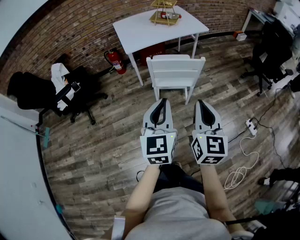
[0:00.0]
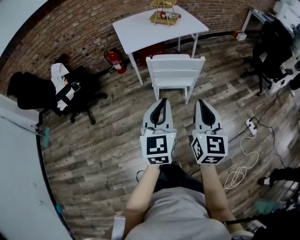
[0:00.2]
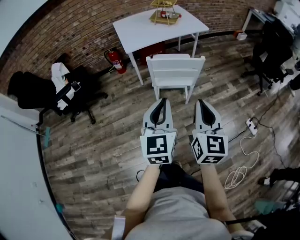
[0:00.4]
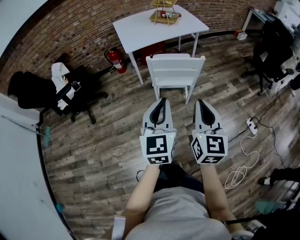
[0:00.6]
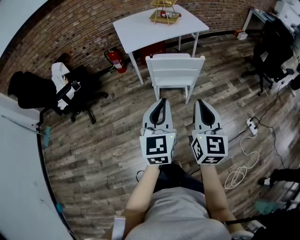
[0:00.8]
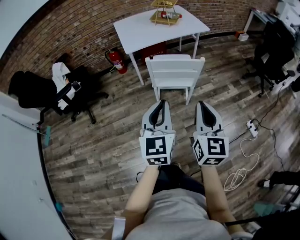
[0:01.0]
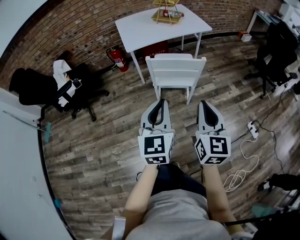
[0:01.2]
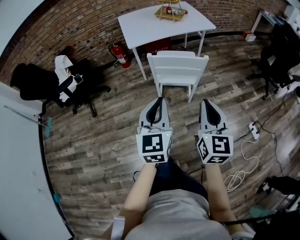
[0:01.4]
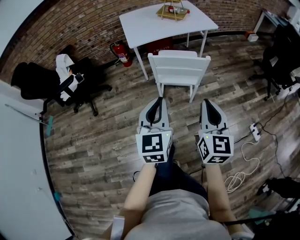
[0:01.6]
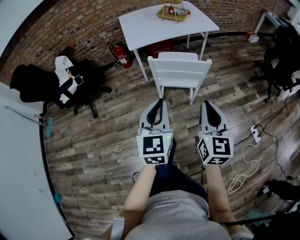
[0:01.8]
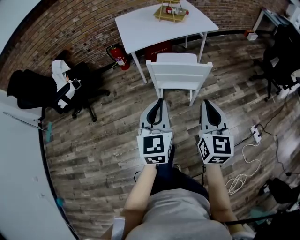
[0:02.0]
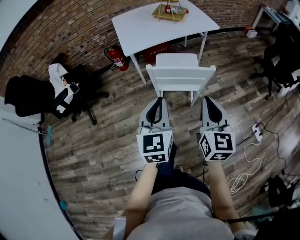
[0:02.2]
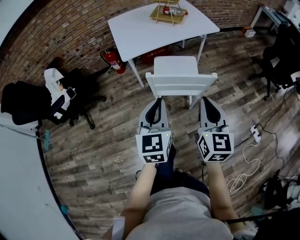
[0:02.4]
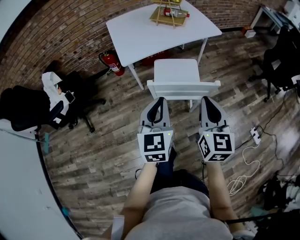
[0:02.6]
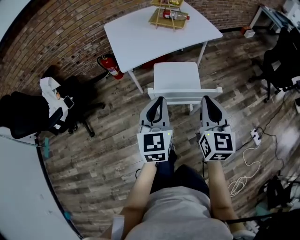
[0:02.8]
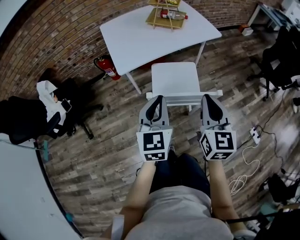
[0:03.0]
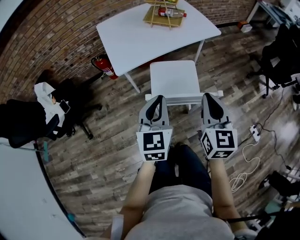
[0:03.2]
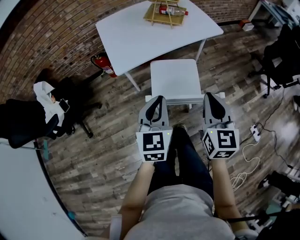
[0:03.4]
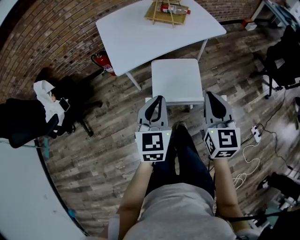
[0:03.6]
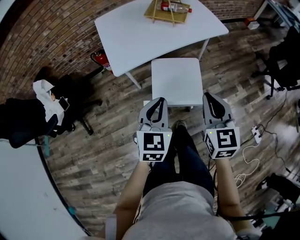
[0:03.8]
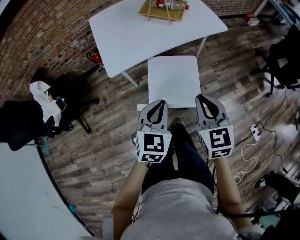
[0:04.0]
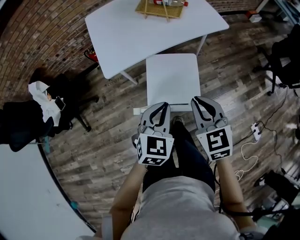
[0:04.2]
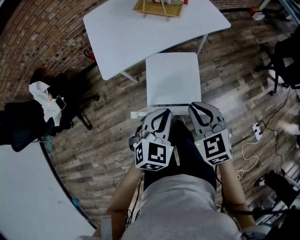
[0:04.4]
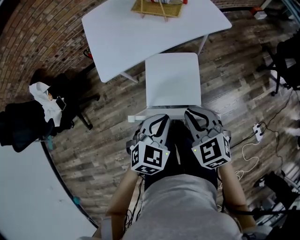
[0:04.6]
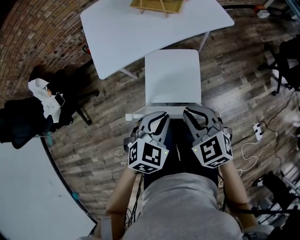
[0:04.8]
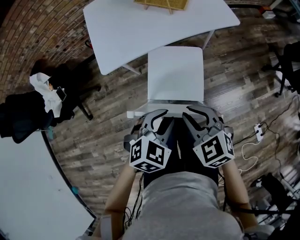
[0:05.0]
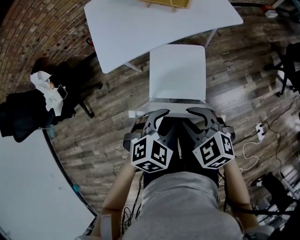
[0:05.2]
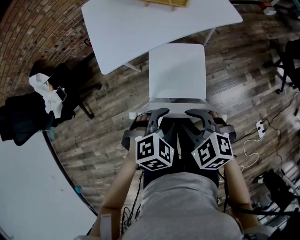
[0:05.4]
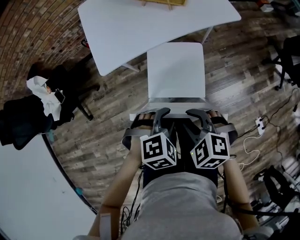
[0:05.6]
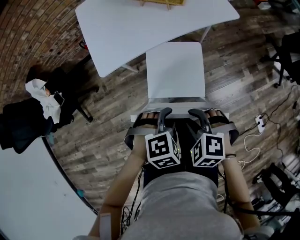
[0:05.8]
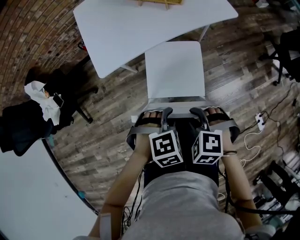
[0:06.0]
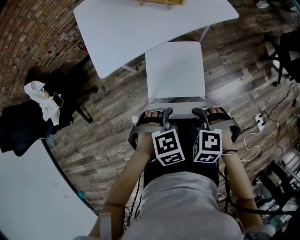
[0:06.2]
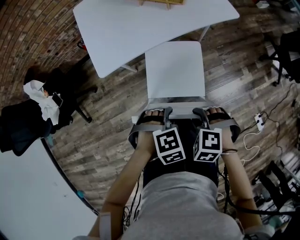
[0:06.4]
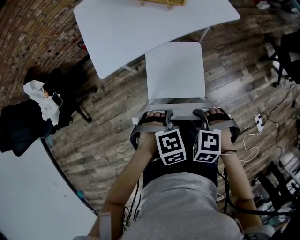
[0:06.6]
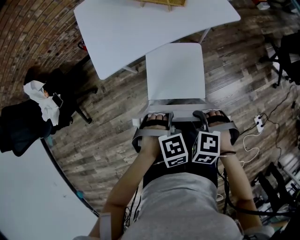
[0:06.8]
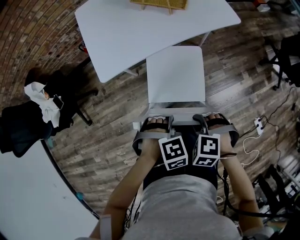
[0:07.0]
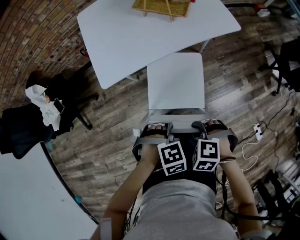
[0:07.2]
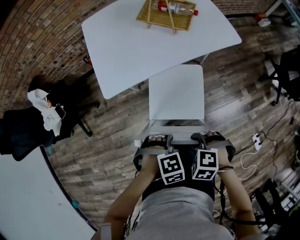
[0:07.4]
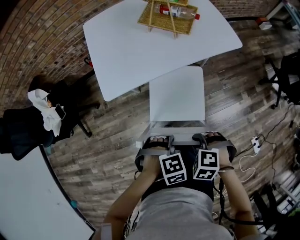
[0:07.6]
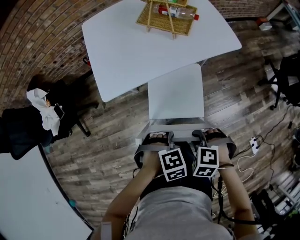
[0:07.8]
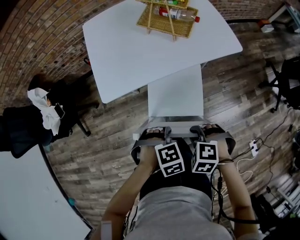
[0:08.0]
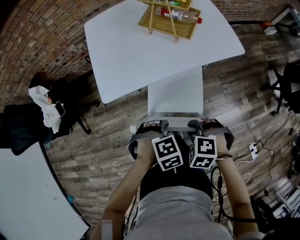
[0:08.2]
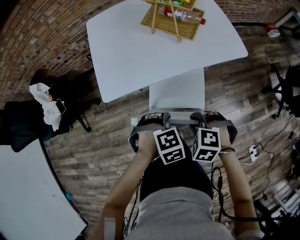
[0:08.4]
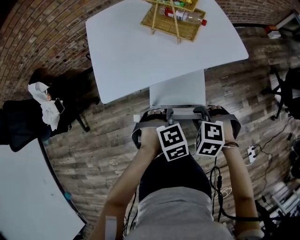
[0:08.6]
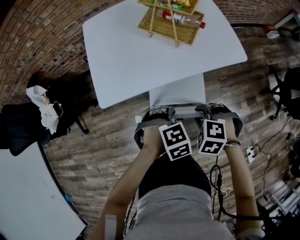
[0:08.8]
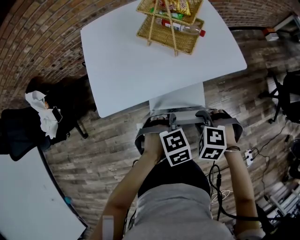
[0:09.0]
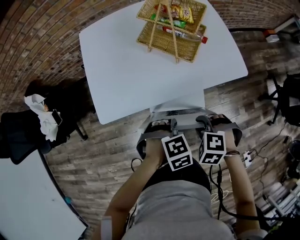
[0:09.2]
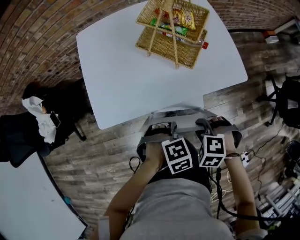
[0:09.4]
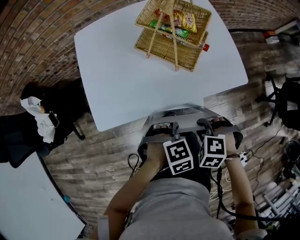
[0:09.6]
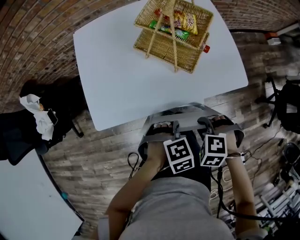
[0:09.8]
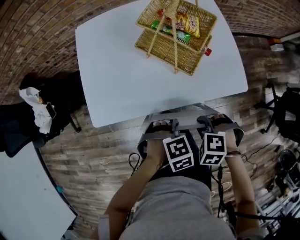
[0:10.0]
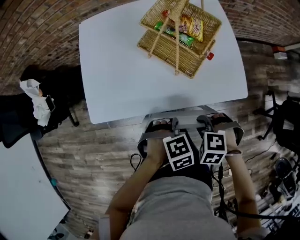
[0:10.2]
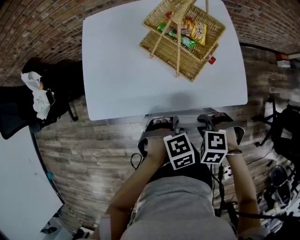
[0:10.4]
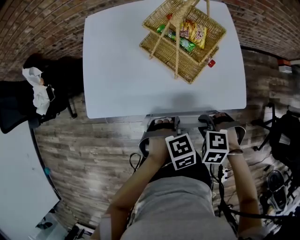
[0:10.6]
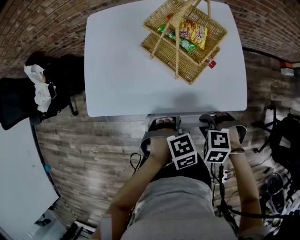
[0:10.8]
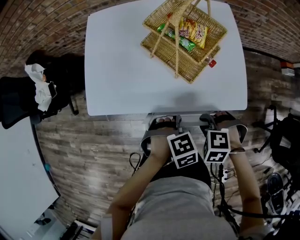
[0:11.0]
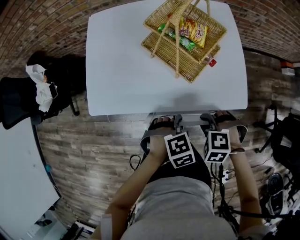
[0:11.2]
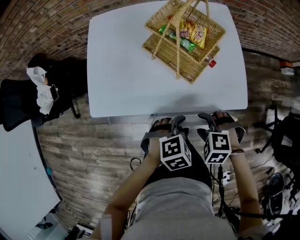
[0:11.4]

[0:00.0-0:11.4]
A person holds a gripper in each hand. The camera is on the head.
0:00.0 to 0:01.4: The right gripper ends up about 5 cm from where it was.
0:01.4 to 0:02.8: The grippers both shift forward by some 25 cm.
0:02.8 to 0:04.2: The left gripper is displaced forward, downward and to the right by about 15 cm, and turns by roughly 30 degrees; the right gripper moves forward and downward, some 15 cm, and changes its angle by some 30 degrees.
0:04.2 to 0:05.6: The grippers both shift downward by approximately 10 cm. The right gripper swivels some 50 degrees, and opens up; the left gripper points its fingers about 30 degrees further downward, and opens.
0:05.6 to 0:07.2: The right gripper shifts about 5 cm downward, and turns by about 20 degrees.
0:07.2 to 0:08.6: The left gripper moves approximately 15 cm; the right gripper shifts by roughly 15 cm.
0:08.6 to 0:10.0: The left gripper changes place by roughly 15 cm; the right gripper shifts by approximately 15 cm.
0:10.0 to 0:11.4: The right gripper opens. Meanwhile the left gripper moves roughly 5 cm, rotates some 20 degrees, and opens up.

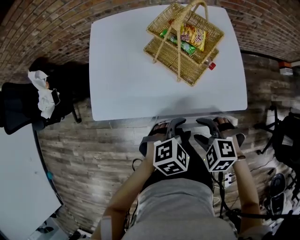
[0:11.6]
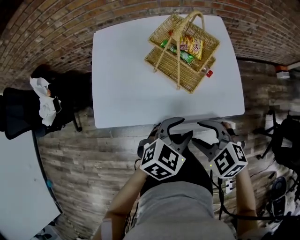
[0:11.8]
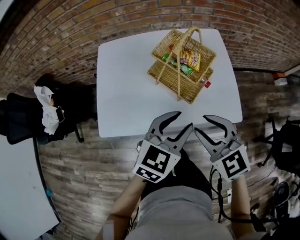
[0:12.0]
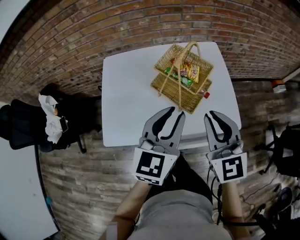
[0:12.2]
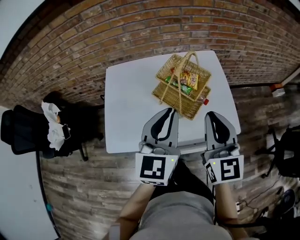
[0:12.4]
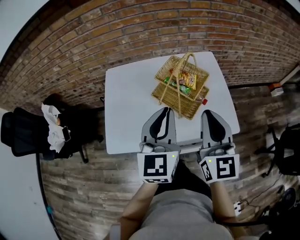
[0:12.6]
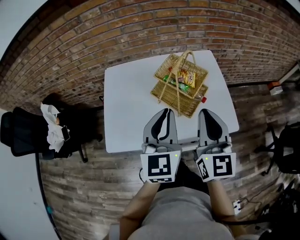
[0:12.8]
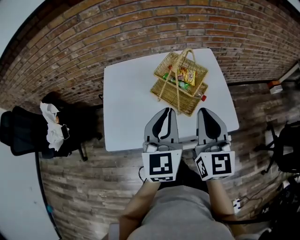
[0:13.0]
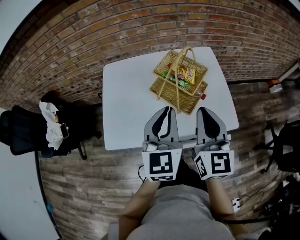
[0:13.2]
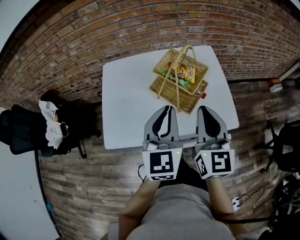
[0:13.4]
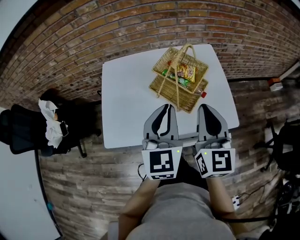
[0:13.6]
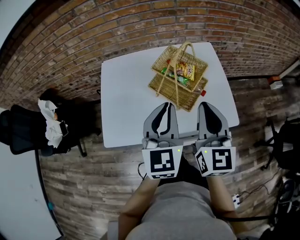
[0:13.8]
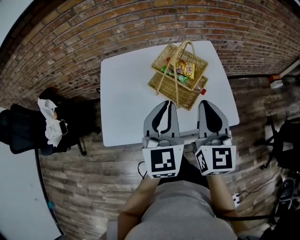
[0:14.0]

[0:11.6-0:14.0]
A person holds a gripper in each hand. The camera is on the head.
0:11.6 to 0:12.8: The left gripper moves upward, forward and to the left, about 30 cm, tilts its fingers roughly 50 degrees upward, and closes up. Meanwhile the right gripper heads upward and forward, covering about 25 cm, points its fingers roughly 60 degrees further upward, and closes up.
0:12.8 to 0:14.0: The grippers stay close to where they were, moving slightly.

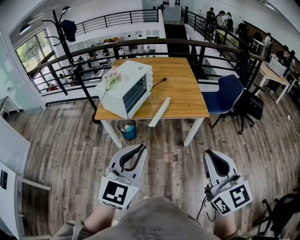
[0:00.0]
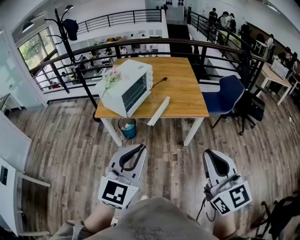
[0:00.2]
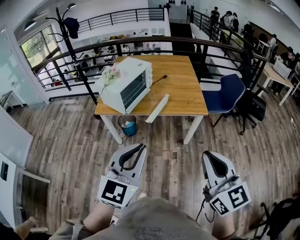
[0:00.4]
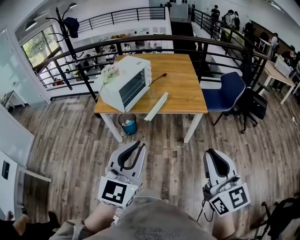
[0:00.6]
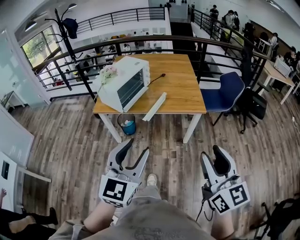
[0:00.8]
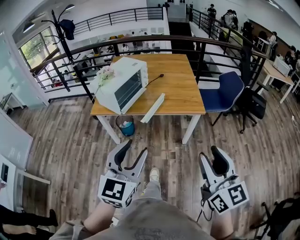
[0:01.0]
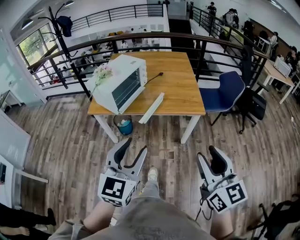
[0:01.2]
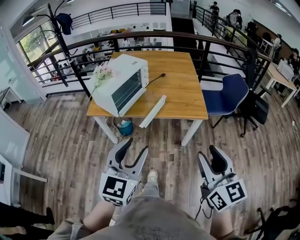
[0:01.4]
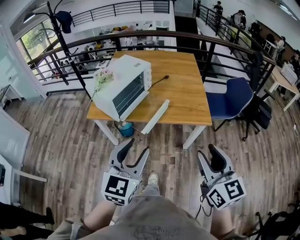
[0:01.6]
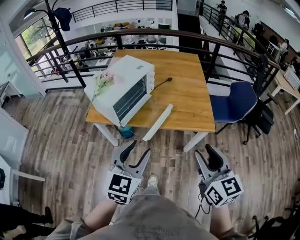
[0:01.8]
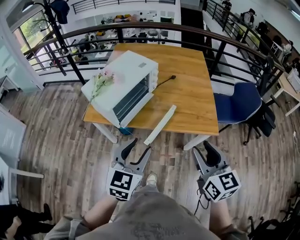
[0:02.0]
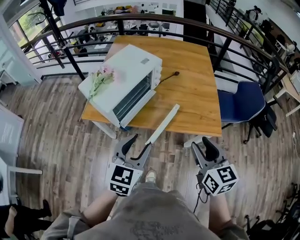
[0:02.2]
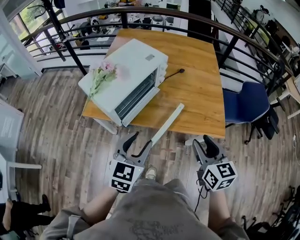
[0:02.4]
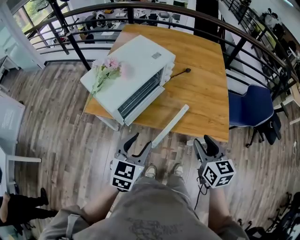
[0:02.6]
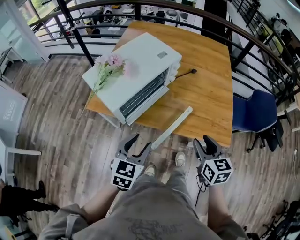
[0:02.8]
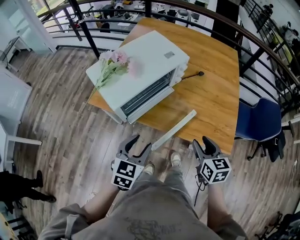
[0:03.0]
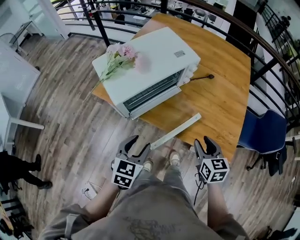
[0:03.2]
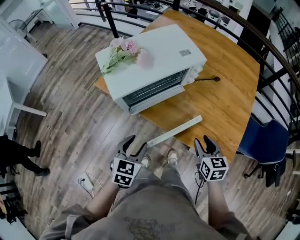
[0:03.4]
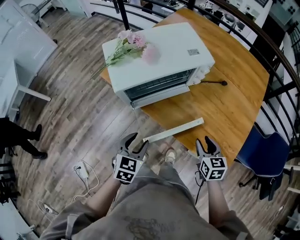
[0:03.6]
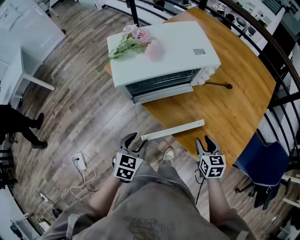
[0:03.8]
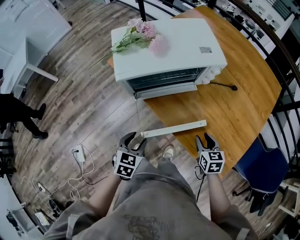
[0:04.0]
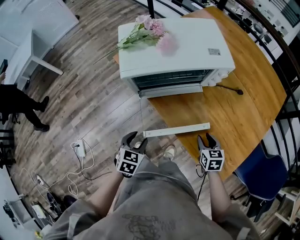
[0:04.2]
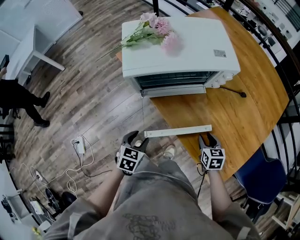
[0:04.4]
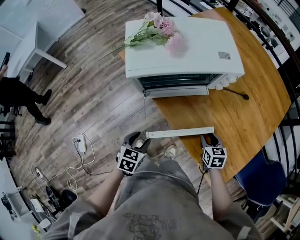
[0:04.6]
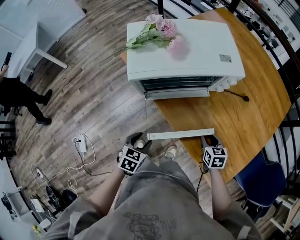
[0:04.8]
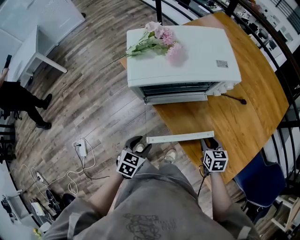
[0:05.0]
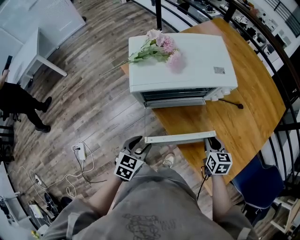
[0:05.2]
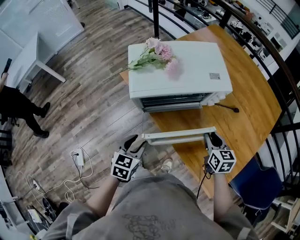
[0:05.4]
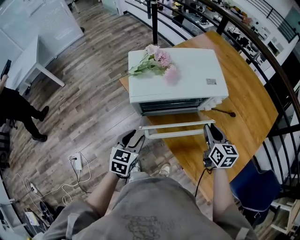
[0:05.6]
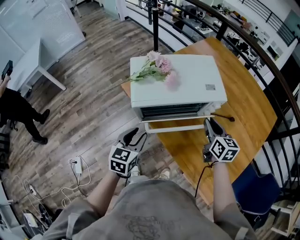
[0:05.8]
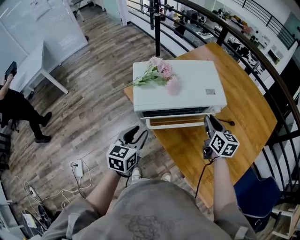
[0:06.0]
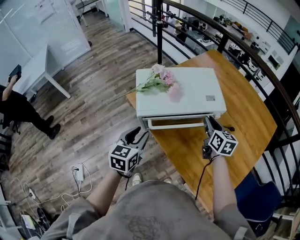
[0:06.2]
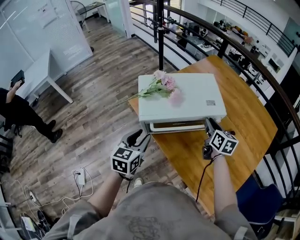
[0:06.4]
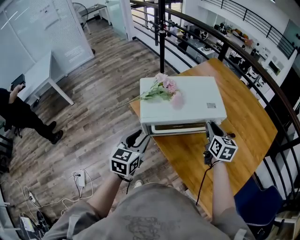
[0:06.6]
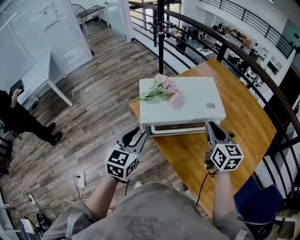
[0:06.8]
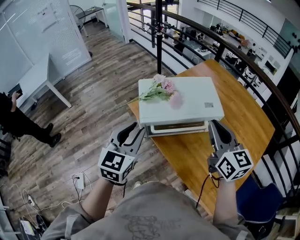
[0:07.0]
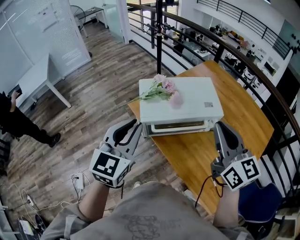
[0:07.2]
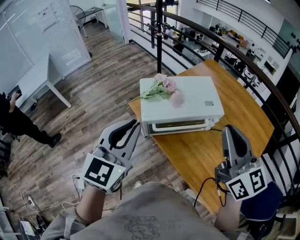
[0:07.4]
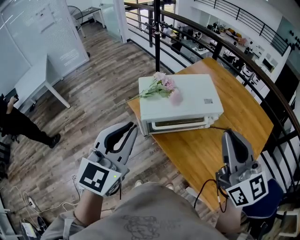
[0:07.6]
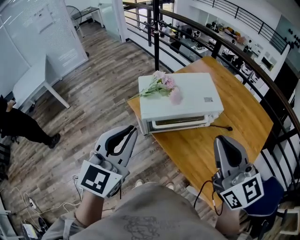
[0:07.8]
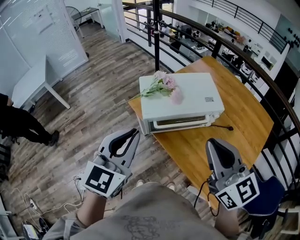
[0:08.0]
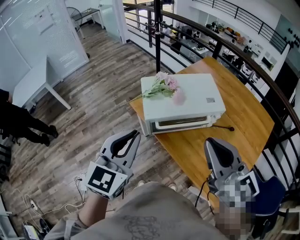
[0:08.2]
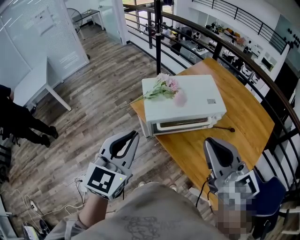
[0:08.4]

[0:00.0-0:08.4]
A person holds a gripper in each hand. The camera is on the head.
0:00.0 to 0:01.4: The right gripper goes some 15 cm forward, to the right and downward, and opens its fingers, while the left gripper goes some 10 cm forward, downward and to the right, and opens.
0:01.4 to 0:02.8: Both grippers move forward and downward, approximately 35 cm. The right gripper turns by roughly 30 degrees; the left gripper turns by some 30 degrees.
0:02.8 to 0:04.2: The two grippers go approximately 20 cm downward. The left gripper changes its angle by approximately 40 degrees; the right gripper swivels approximately 40 degrees.
0:04.2 to 0:05.6: Both grippers move upward and forward, approximately 20 cm. The right gripper swivels approximately 20 degrees.
0:05.6 to 0:07.0: The grippers both shift upward by about 20 cm. The right gripper turns by some 20 degrees. Meanwhile the left gripper turns by about 20 degrees.
0:07.0 to 0:08.4: The left gripper shifts roughly 10 cm upward and backward, and closes. The right gripper travels backward, to the left and upward by approximately 15 cm.

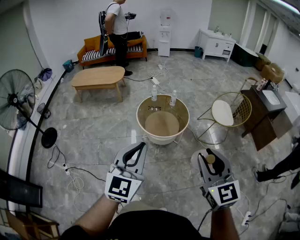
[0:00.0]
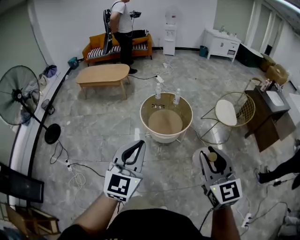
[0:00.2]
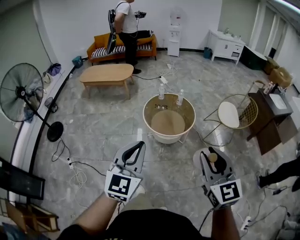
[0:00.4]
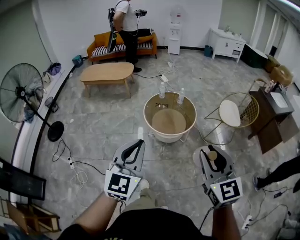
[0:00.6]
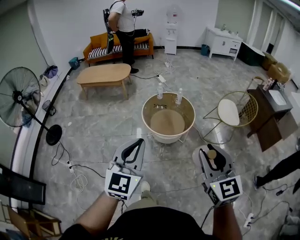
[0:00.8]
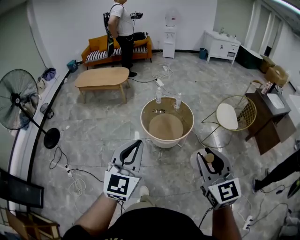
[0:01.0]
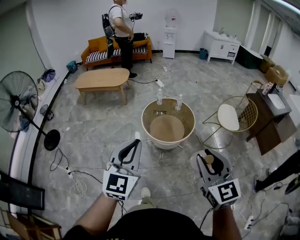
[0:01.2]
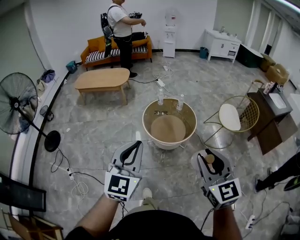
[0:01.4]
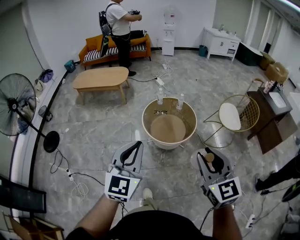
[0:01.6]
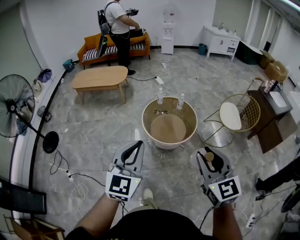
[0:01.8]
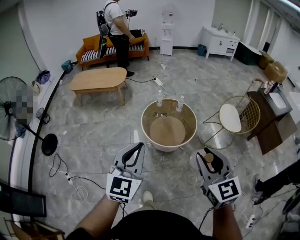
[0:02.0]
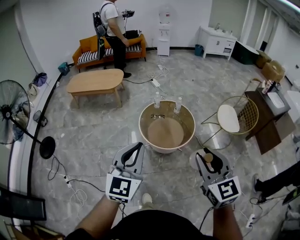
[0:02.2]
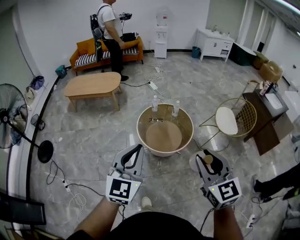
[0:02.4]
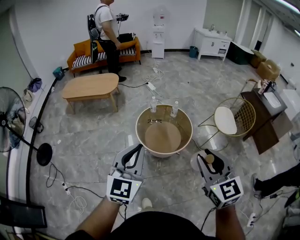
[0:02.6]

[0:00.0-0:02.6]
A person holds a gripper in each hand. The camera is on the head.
0:00.0 to 0:01.2: The grippers both shift forward by some 5 cm.
0:01.2 to 0:02.6: Both grippers travel together forward, roughly 15 cm.
